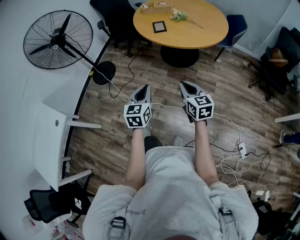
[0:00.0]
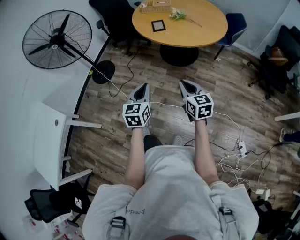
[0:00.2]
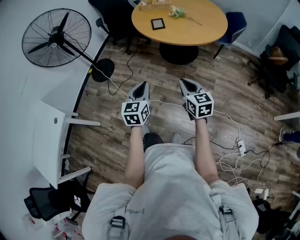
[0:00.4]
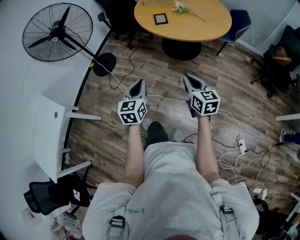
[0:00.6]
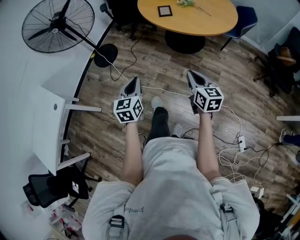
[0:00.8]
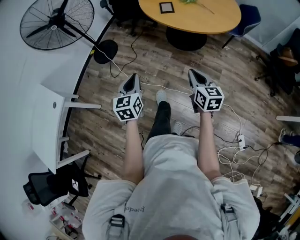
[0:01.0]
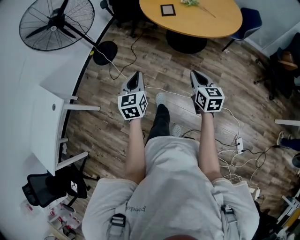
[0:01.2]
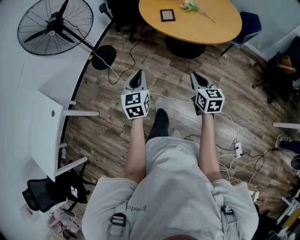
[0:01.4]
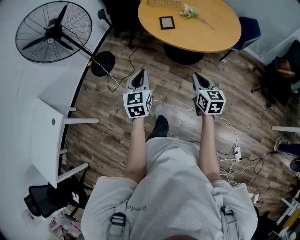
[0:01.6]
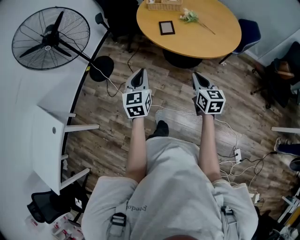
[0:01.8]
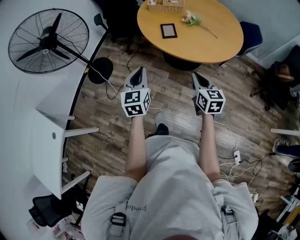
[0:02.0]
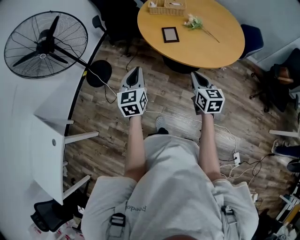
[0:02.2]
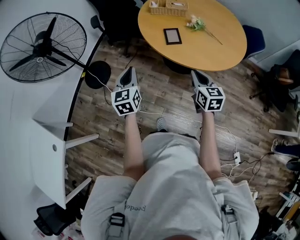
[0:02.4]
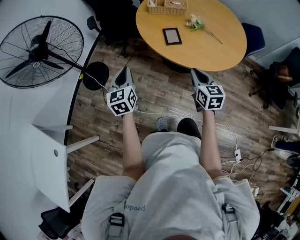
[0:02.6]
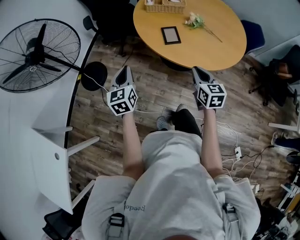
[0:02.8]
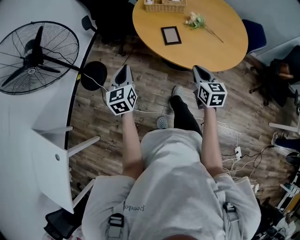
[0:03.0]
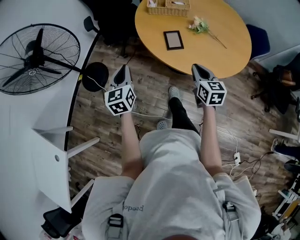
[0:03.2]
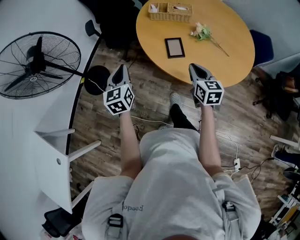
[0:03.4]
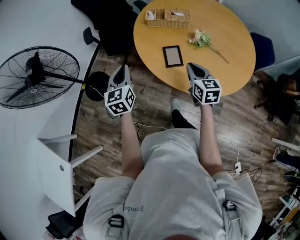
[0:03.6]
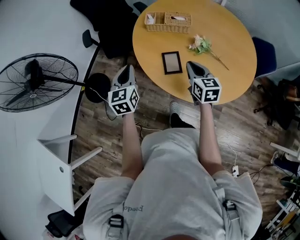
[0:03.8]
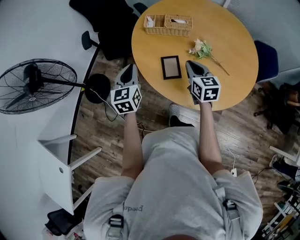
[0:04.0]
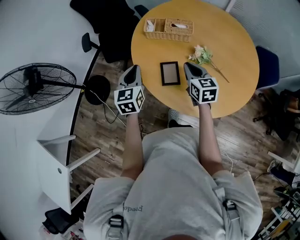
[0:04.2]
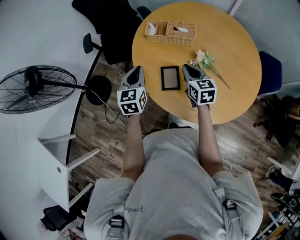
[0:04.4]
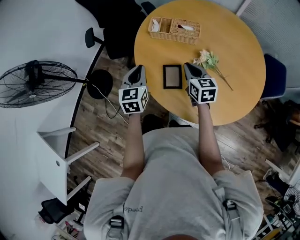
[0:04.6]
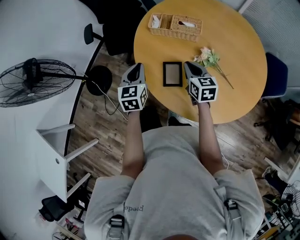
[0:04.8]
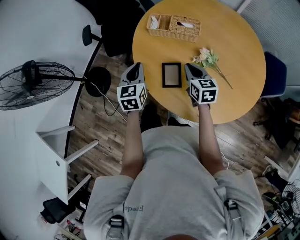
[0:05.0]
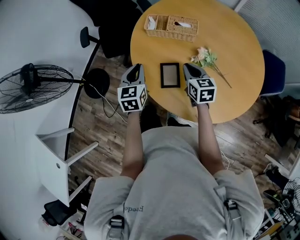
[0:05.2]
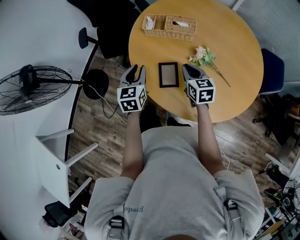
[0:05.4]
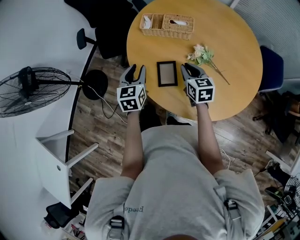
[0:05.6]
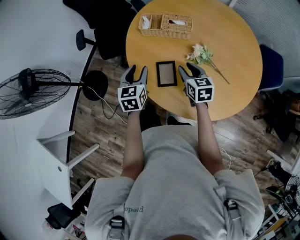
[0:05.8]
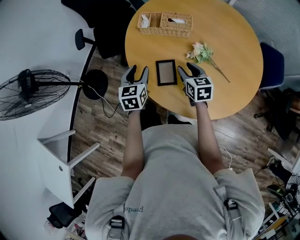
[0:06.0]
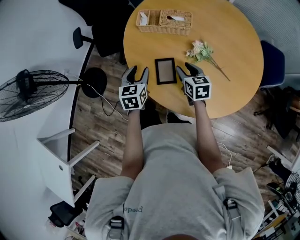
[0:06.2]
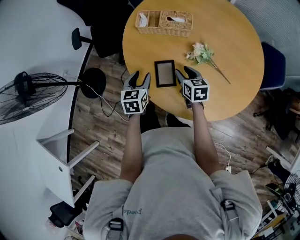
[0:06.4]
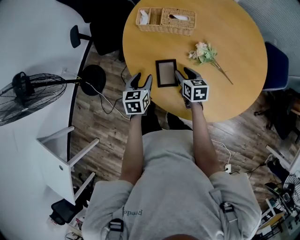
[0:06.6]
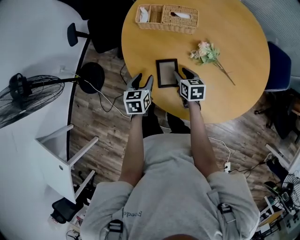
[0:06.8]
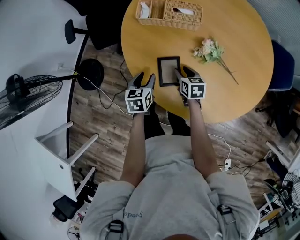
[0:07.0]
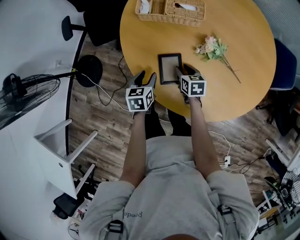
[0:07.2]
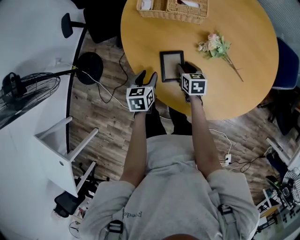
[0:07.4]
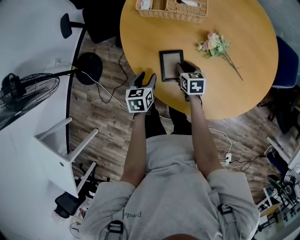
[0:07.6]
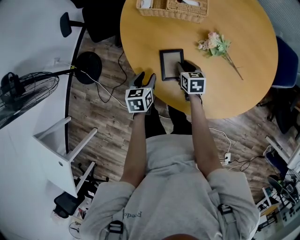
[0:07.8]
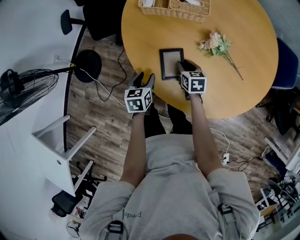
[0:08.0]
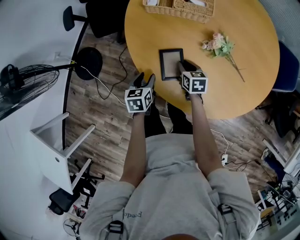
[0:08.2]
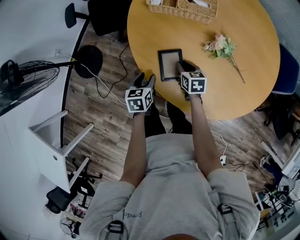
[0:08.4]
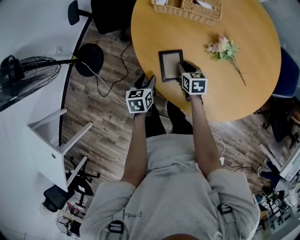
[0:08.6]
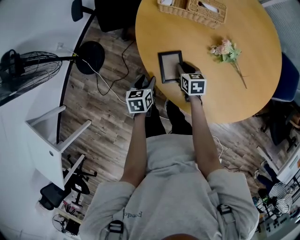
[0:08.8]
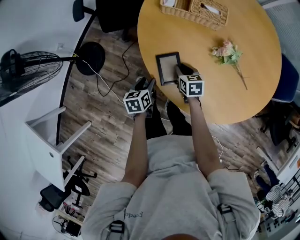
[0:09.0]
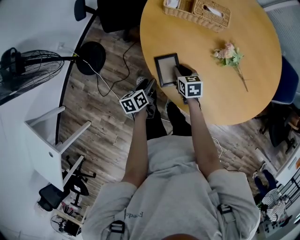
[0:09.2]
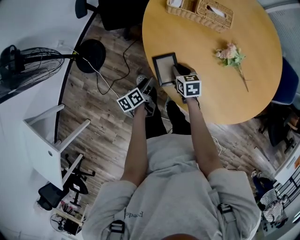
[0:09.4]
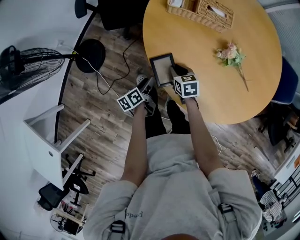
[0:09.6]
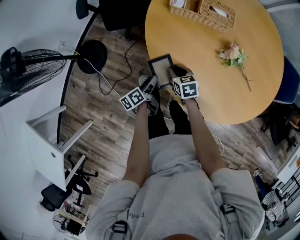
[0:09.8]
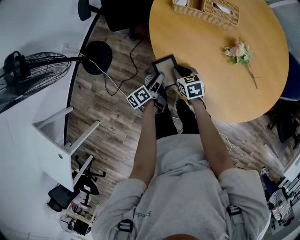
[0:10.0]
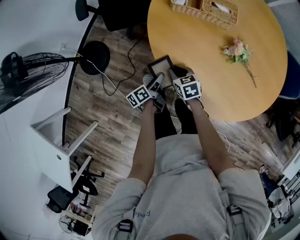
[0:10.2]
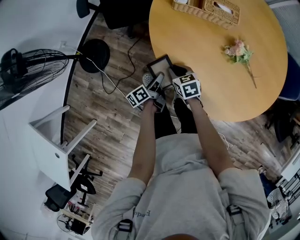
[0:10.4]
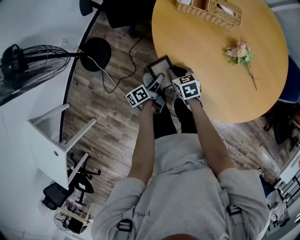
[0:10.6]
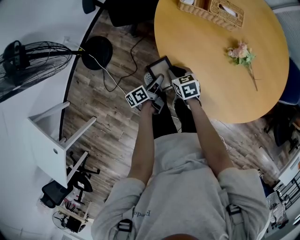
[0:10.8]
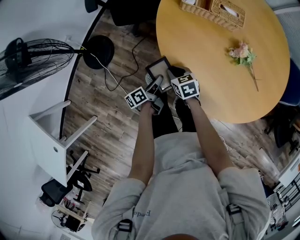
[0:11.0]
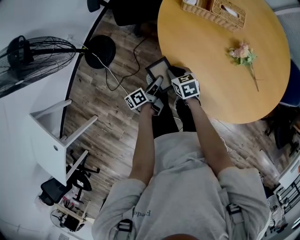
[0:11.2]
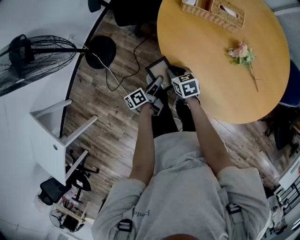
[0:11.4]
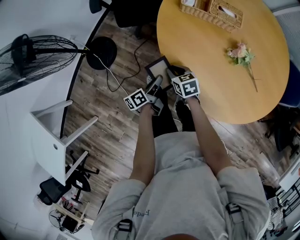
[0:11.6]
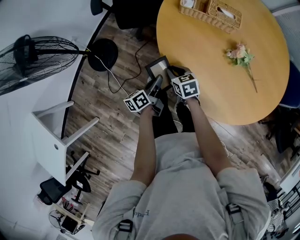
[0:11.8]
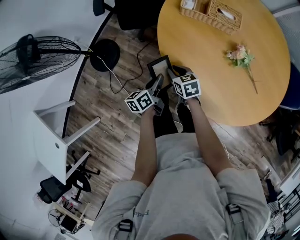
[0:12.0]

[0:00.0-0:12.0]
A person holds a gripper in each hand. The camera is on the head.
0:00.0 to 0:01.6: The two grippers go roughly 15 cm forward.
0:01.6 to 0:03.0: Both grippers move forward, roughly 25 cm.
0:03.0 to 0:04.4: The right gripper shifts approximately 30 cm forward, while the left gripper goes some 30 cm forward and to the right.
0:04.4 to 0:06.0: The two grippers go some 5 cm downward. The right gripper opens its fingers; the left gripper opens its fingers.
0:06.0 to 0:07.6: The two grippers go about 15 cm downward. The left gripper turns by approximately 20 degrees.
0:07.6 to 0:09.0: The grippers both shift to the left by approximately 5 cm.
0:09.0 to 0:10.4: The right gripper goes approximately 10 cm to the left, while the left gripper rolls counterclockwise, seen from behind, by roughly 40 degrees, and closes its fingers.
0:10.4 to 0:12.0: The left gripper is displaced upward by about 10 cm, and rotates some 30 degrees.

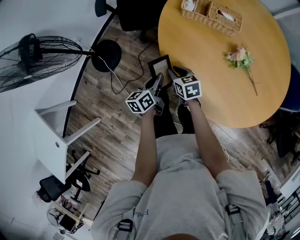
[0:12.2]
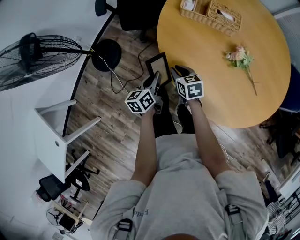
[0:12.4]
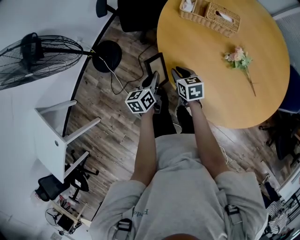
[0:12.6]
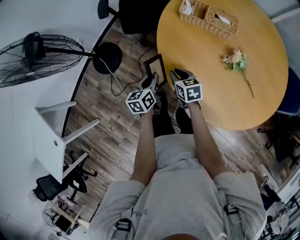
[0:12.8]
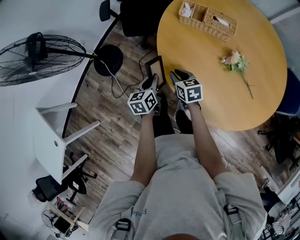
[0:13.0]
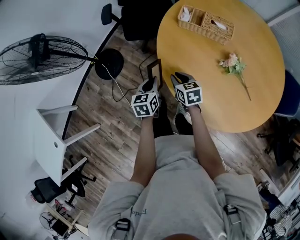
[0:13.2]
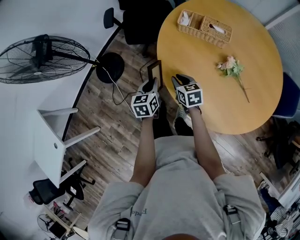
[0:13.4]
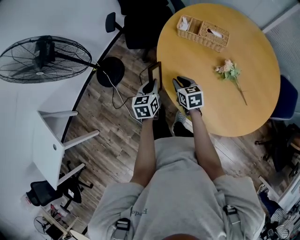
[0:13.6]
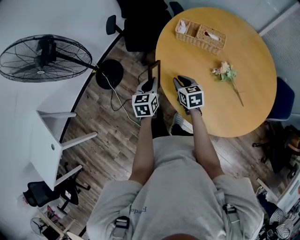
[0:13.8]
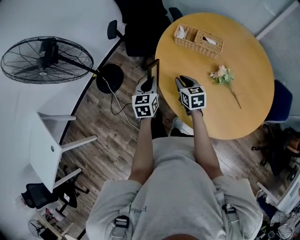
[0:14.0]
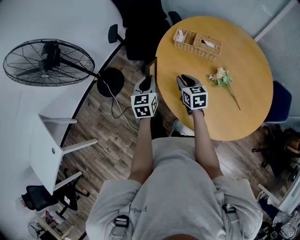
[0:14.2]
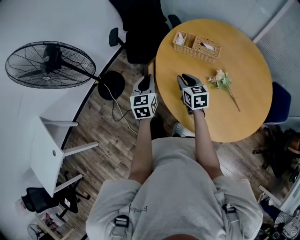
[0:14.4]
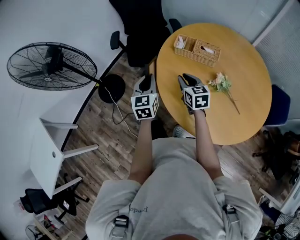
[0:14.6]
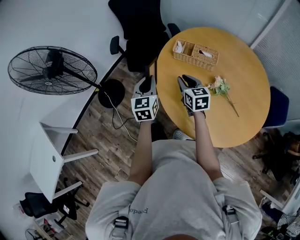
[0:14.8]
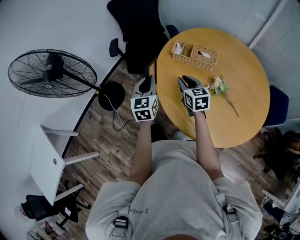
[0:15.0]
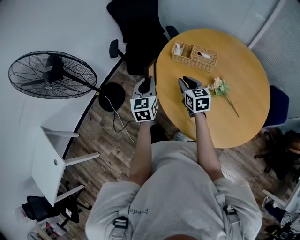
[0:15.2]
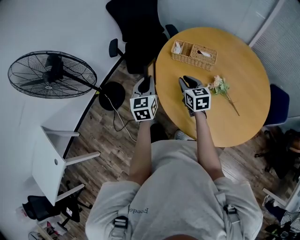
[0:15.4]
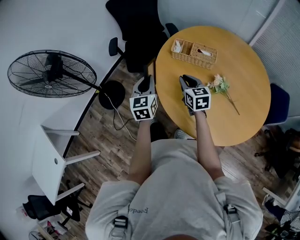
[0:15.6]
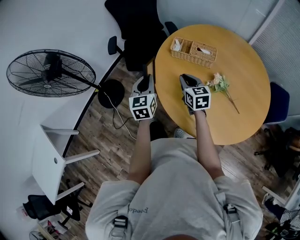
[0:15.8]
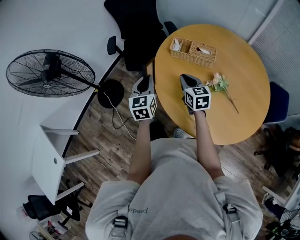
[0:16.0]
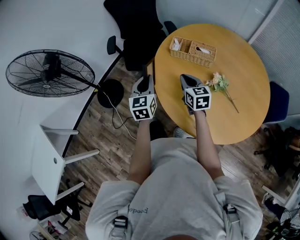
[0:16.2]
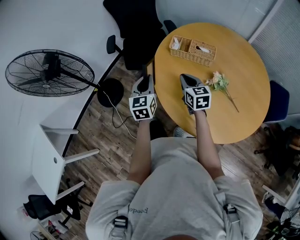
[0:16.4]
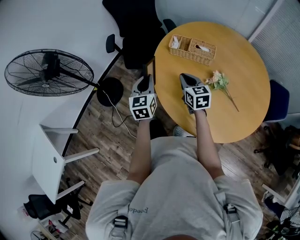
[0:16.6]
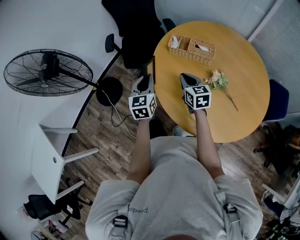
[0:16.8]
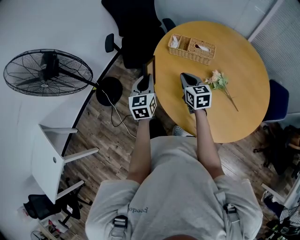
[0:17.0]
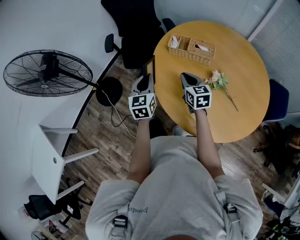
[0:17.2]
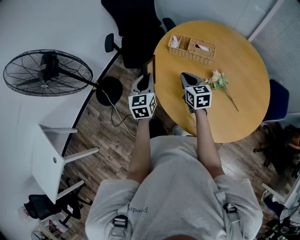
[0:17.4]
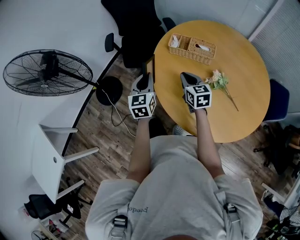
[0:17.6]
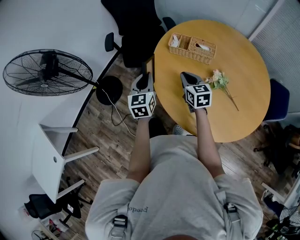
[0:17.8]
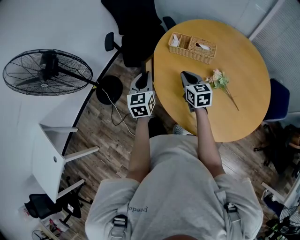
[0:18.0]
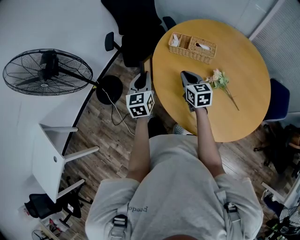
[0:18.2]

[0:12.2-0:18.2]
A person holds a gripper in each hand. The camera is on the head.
0:12.2 to 0:13.8: The right gripper heads upward and to the right, covering some 10 cm; the left gripper is displaced upward by roughly 10 cm, and changes its angle by some 30 degrees.
0:13.8 to 0:15.2: The left gripper shifts about 15 cm upward. The right gripper is displaced upward and to the right by approximately 10 cm.
0:15.2 to 0:18.2: The grippers stay close to where they were, moving slightly.

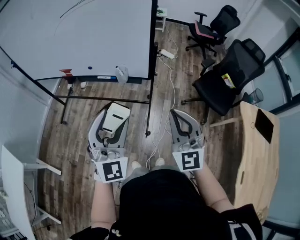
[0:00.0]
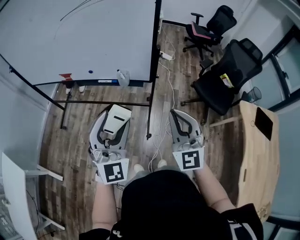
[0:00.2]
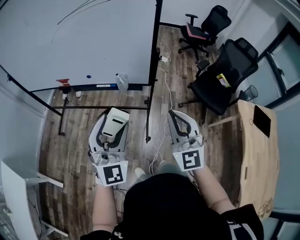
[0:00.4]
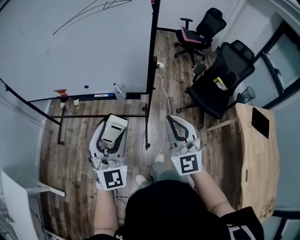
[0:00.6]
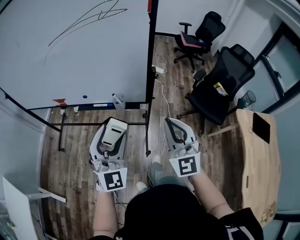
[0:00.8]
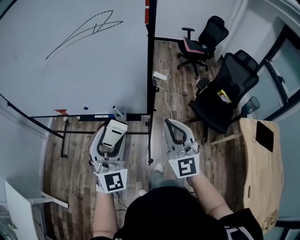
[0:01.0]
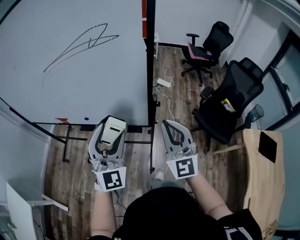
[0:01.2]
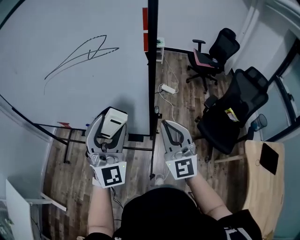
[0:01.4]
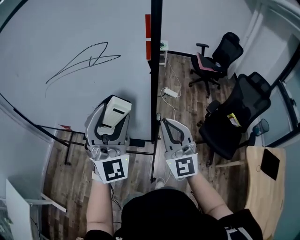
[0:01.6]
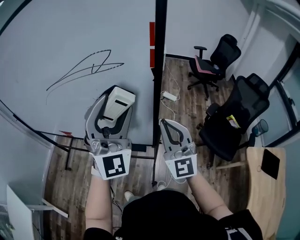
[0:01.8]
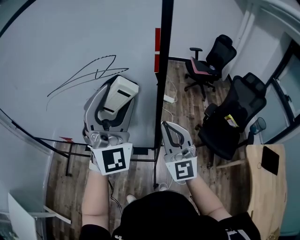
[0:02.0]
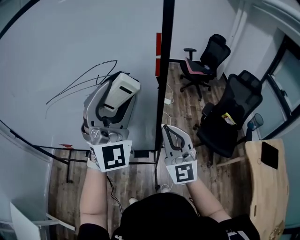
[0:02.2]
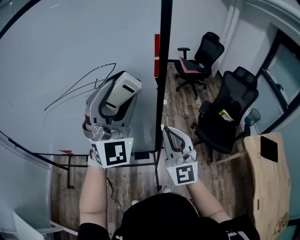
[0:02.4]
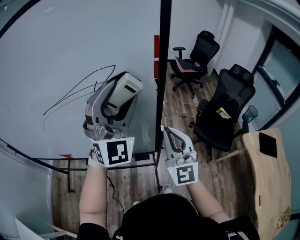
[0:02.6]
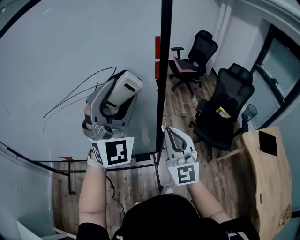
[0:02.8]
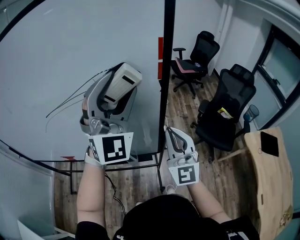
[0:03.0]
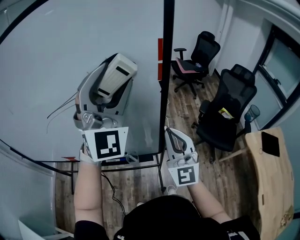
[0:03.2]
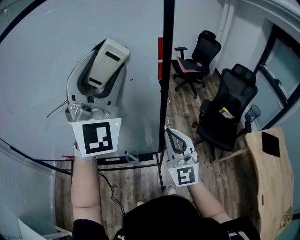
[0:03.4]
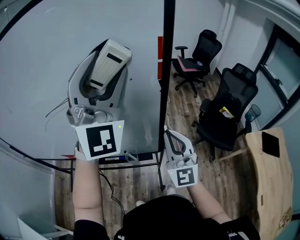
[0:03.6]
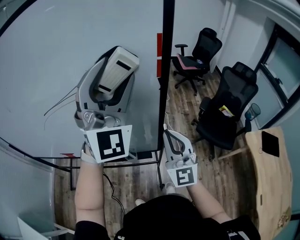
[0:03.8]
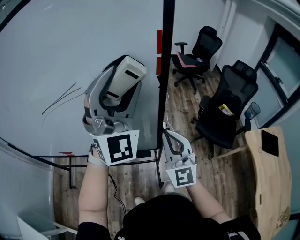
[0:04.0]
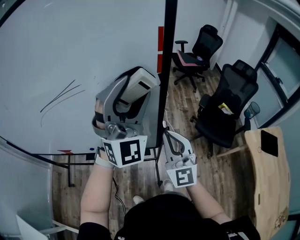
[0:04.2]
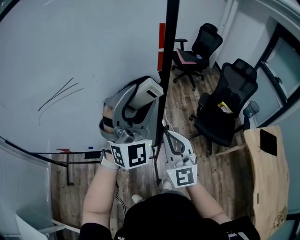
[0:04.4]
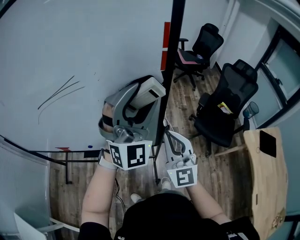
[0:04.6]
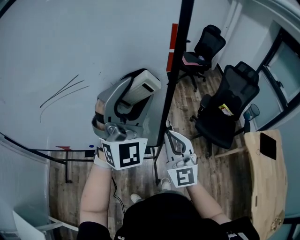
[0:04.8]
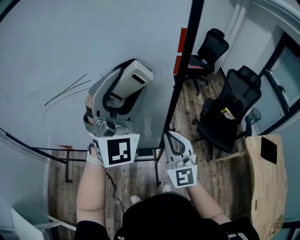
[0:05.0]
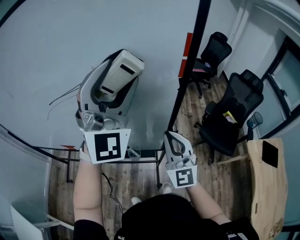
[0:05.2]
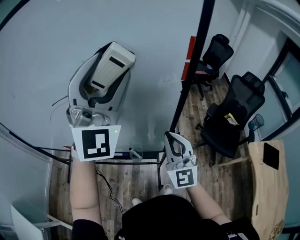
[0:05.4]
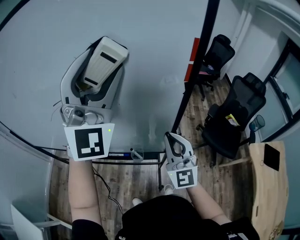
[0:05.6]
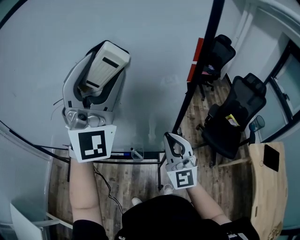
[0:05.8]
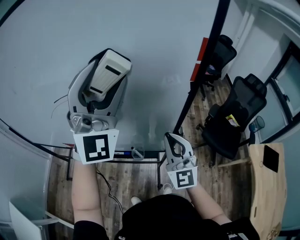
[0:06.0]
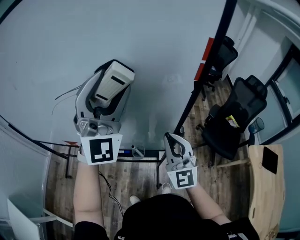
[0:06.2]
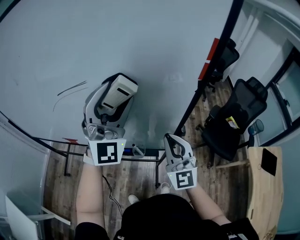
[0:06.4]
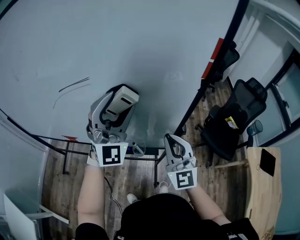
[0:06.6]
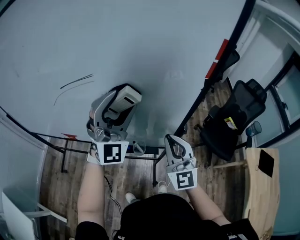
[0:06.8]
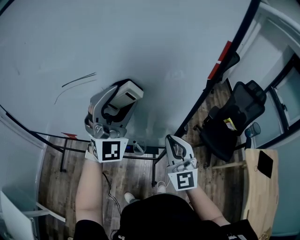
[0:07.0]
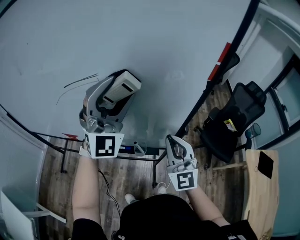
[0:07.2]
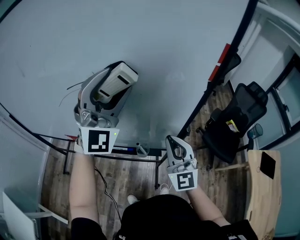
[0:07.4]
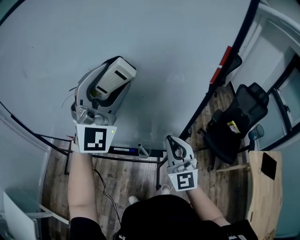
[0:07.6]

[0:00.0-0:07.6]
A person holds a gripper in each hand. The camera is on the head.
0:00.0 to 0:01.6: The right gripper shifts some 30 cm forward; the left gripper is displaced forward and upward by some 35 cm.
0:01.6 to 0:03.0: The left gripper travels upward and forward by roughly 15 cm.
0:03.0 to 0:04.6: The left gripper heads downward and to the right, covering some 10 cm. The right gripper heads downward, covering roughly 5 cm.
0:04.6 to 0:06.0: The right gripper heads to the left, covering roughly 5 cm. Meanwhile the left gripper moves to the left and upward, some 20 cm.
0:06.0 to 0:07.6: The left gripper is displaced to the left by about 5 cm, and travels downward and back again, about 15 cm each way.
